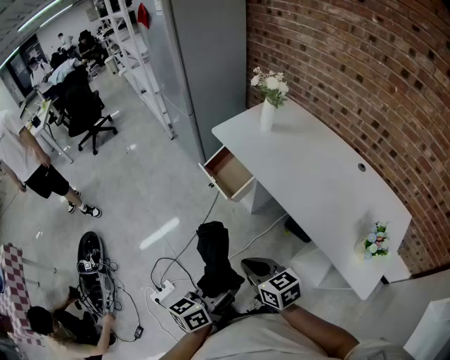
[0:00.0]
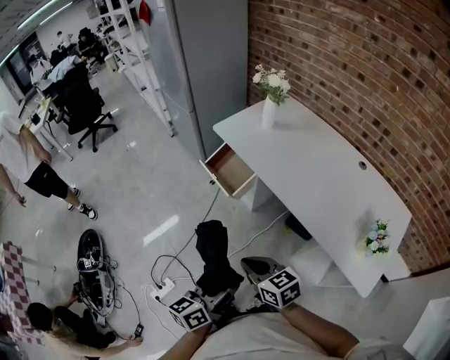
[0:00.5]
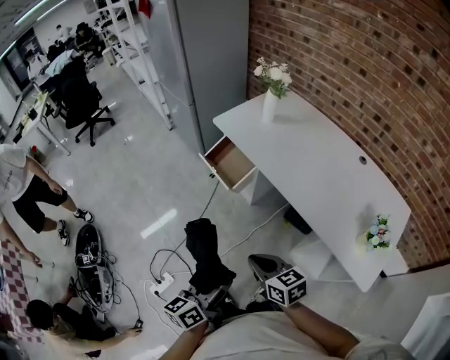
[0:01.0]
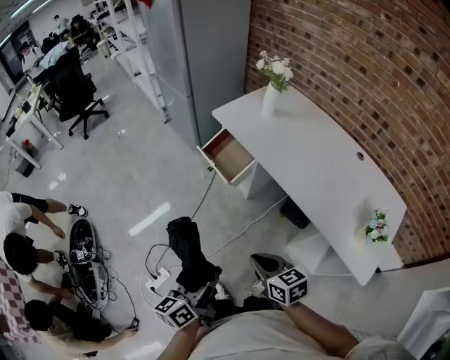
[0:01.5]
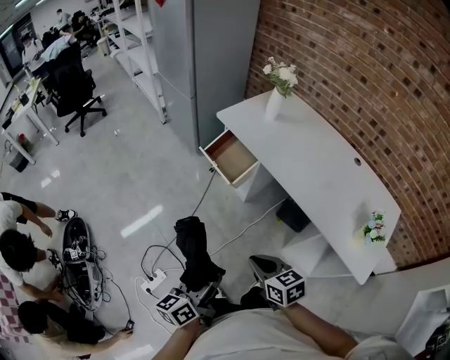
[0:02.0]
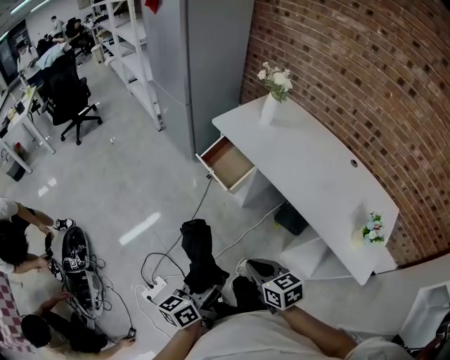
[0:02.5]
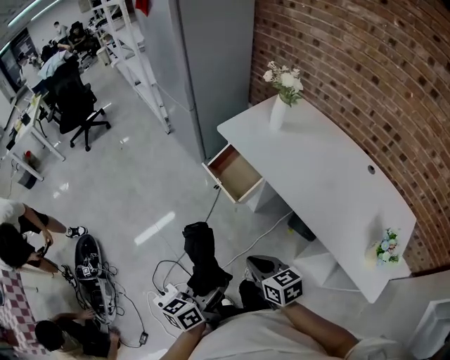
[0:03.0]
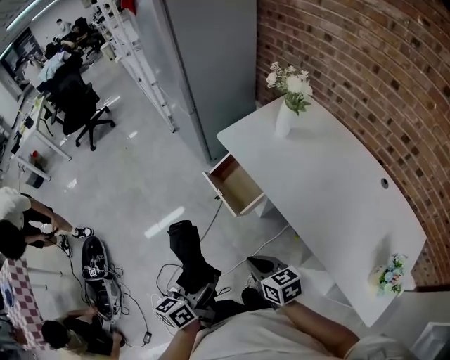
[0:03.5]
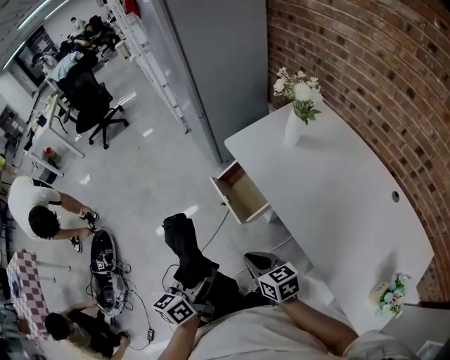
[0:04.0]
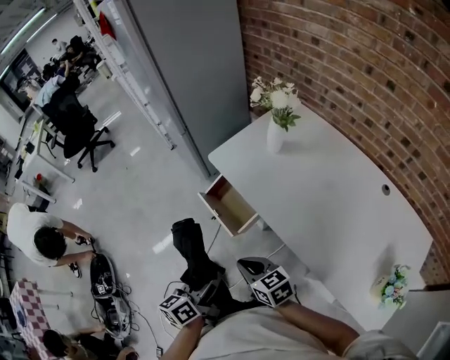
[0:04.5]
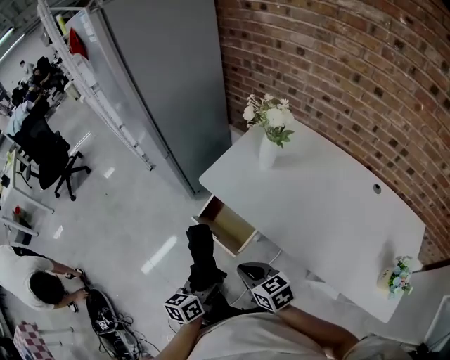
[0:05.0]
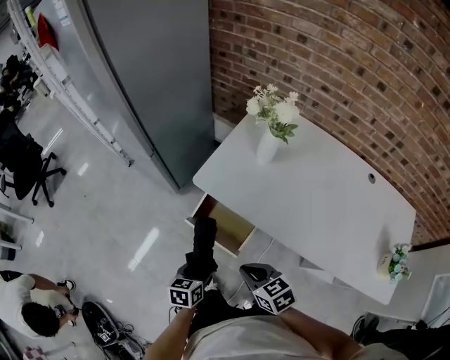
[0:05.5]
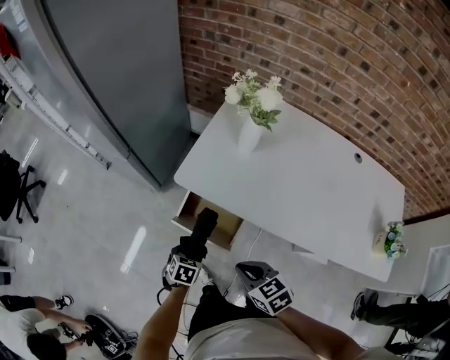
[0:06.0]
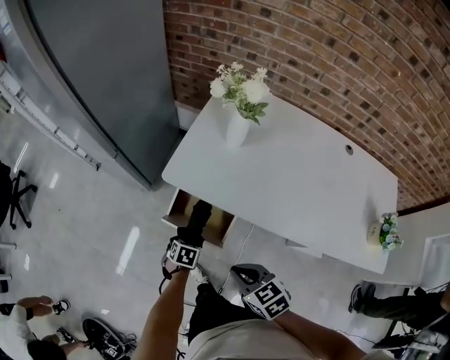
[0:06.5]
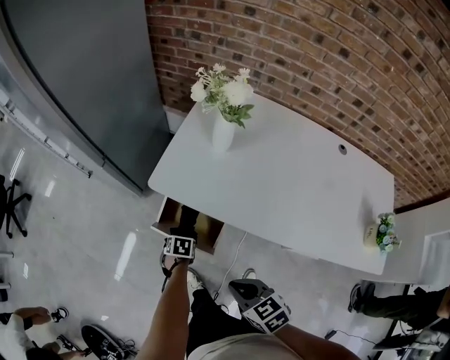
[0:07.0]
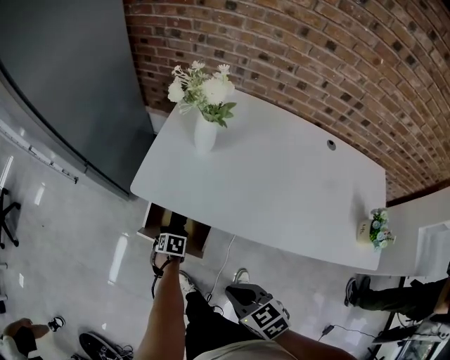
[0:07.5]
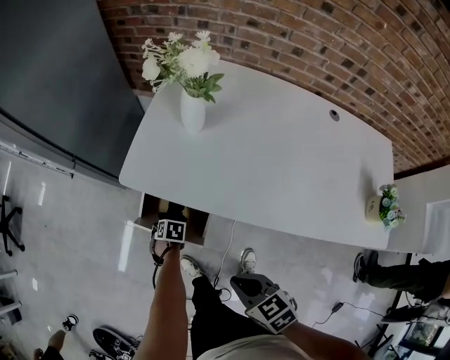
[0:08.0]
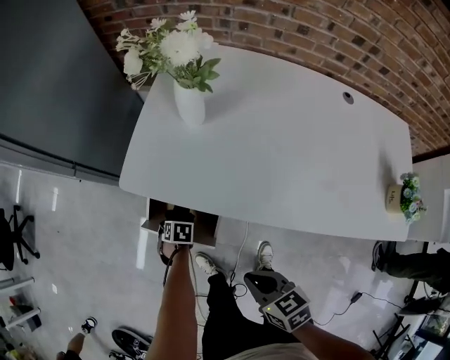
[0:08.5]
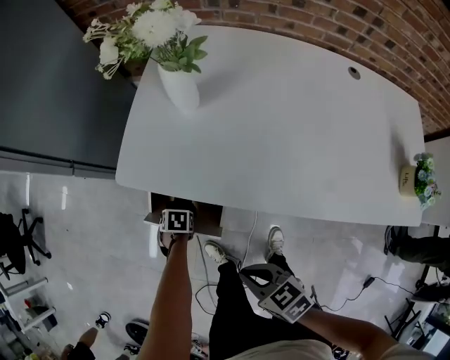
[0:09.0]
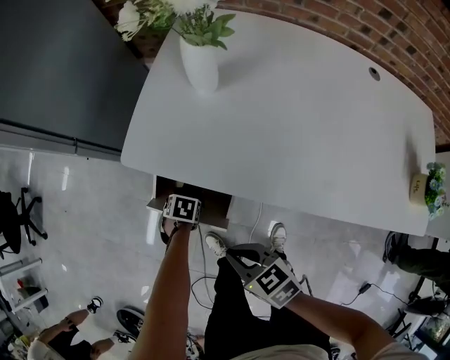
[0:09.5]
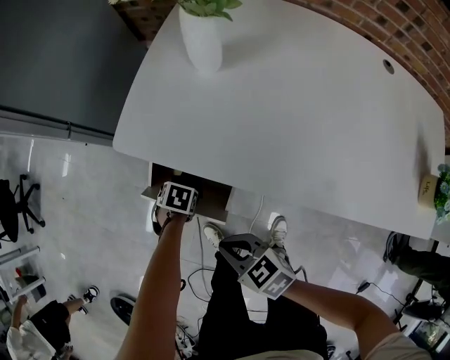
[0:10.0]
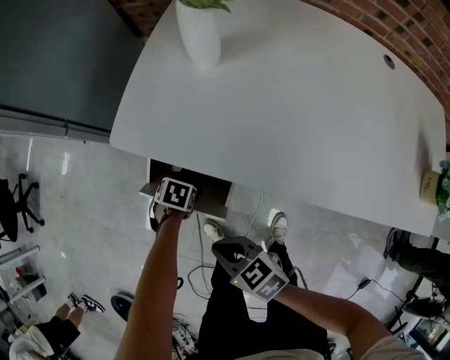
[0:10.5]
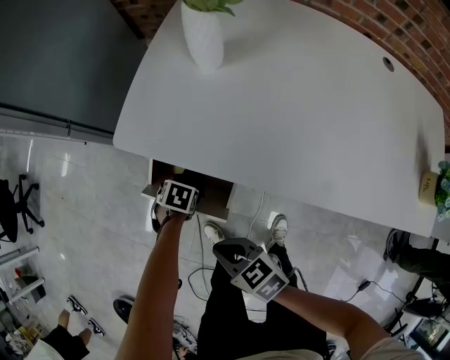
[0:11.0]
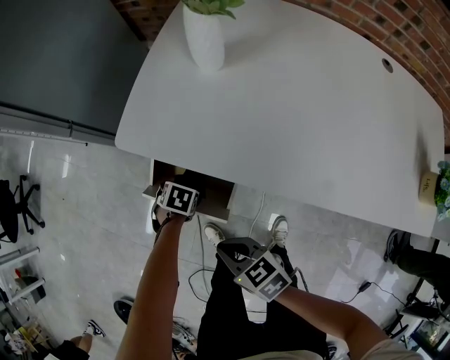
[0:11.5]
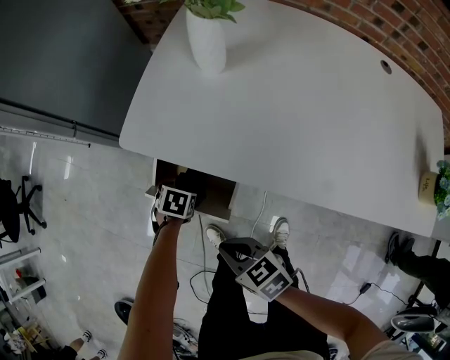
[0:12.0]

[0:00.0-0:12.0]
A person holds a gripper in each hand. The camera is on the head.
0:00.0 to 0:02.0: The left gripper heads to the left, covering roughly 15 cm, while the right gripper ends up about 5 cm from where it was.
0:02.0 to 0:04.0: Both grippers travel together forward, some 25 cm.
0:04.0 to 0:06.0: The right gripper shifts by roughly 15 cm, and changes its angle by approximately 30 degrees. Meanwhile the left gripper changes place by some 35 cm, and tilts its fingers approximately 50 degrees downward.
0:06.0 to 0:08.0: The right gripper moves about 10 cm. The left gripper goes roughly 10 cm downward, and swivels approximately 20 degrees.
0:08.0 to 0:10.0: The right gripper goes approximately 15 cm downward.
0:10.0 to 0:12.0: The grippers stay close to where they were, moving slightly.

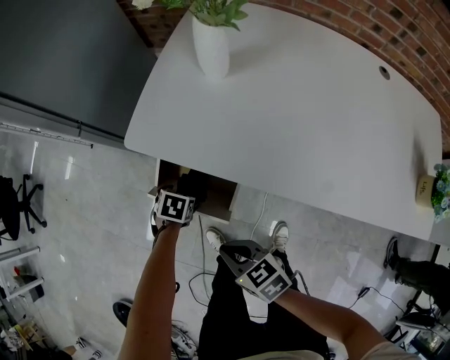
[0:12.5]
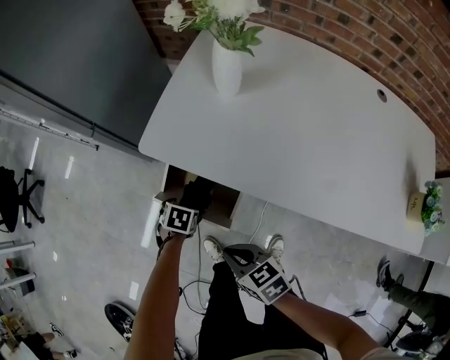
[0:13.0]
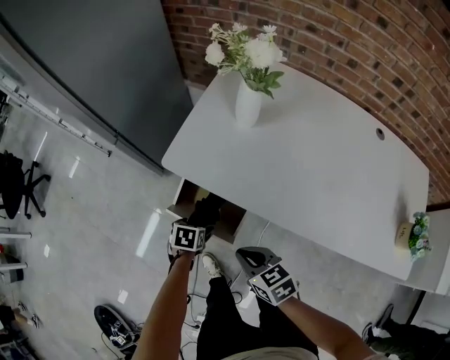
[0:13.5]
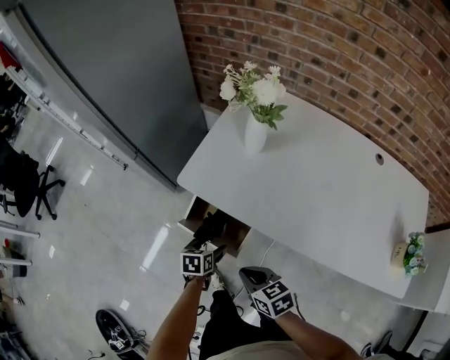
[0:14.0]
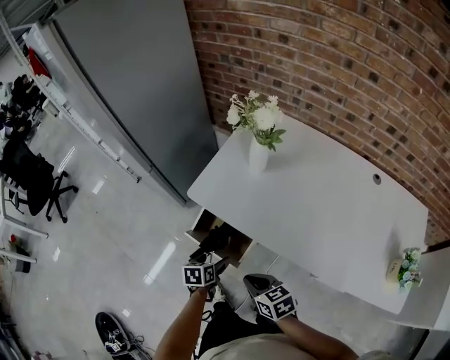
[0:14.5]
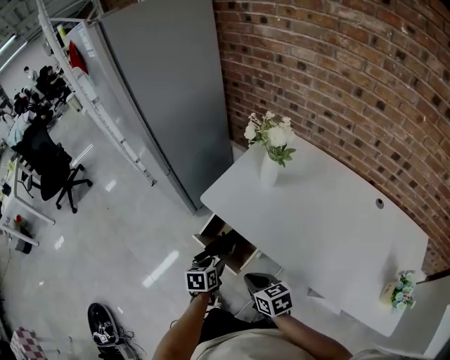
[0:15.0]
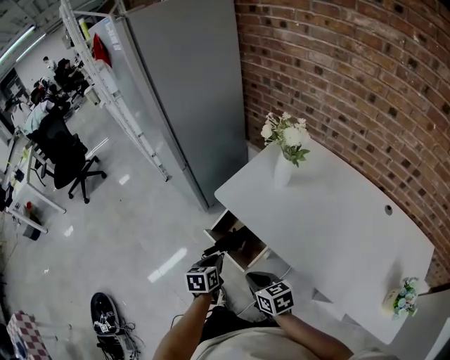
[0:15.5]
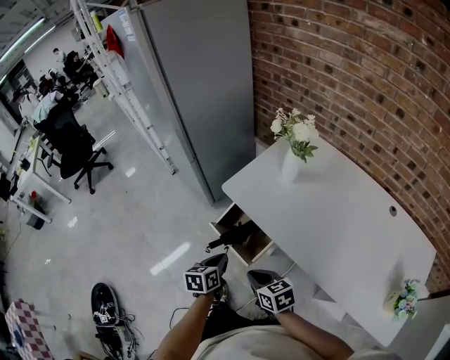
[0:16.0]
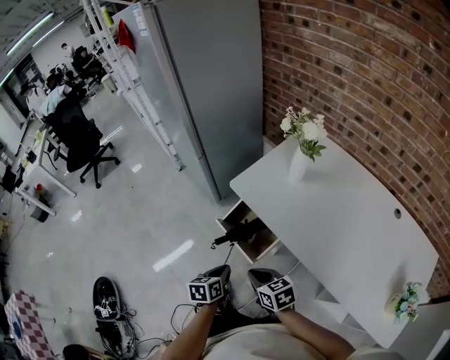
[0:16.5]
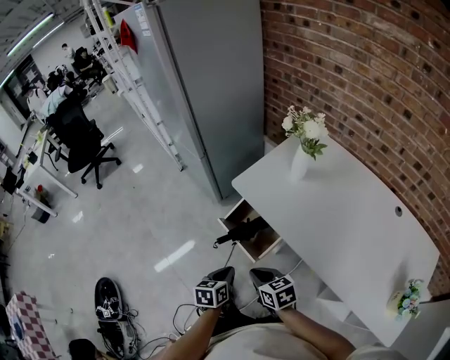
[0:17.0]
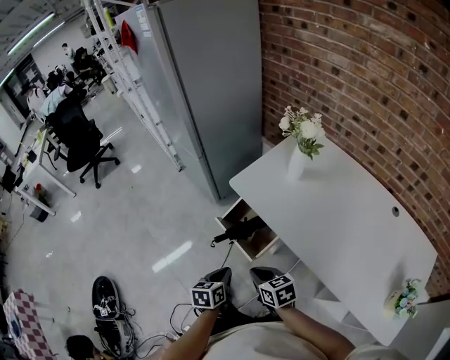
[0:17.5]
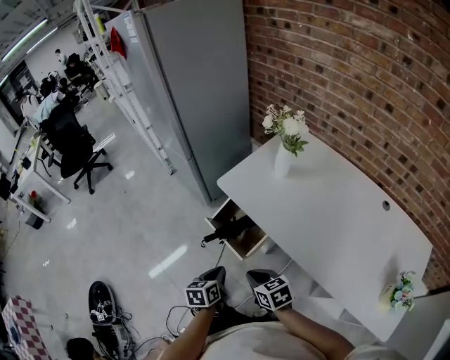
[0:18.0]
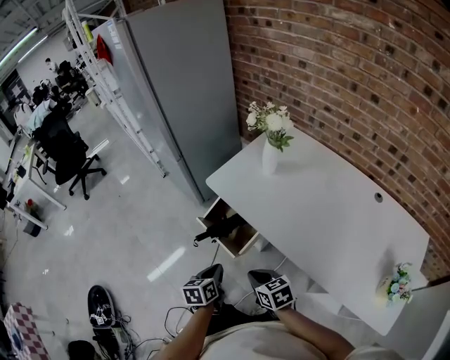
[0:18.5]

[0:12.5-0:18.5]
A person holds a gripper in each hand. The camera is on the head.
0:12.5 to 0:14.5: The grippers both shift upward by some 15 cm. The left gripper swivels approximately 40 degrees.
0:14.5 to 0:16.5: The right gripper ends up approximately 5 cm from where it was; the left gripper is displaced backward, upward and to the left by roughly 15 cm, swivels about 20 degrees, and closes its fingers.
0:16.5 to 0:18.5: The left gripper ends up some 5 cm from where it was; the right gripper goes roughly 10 cm to the right and backward.

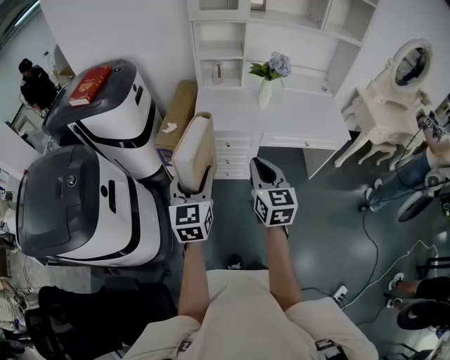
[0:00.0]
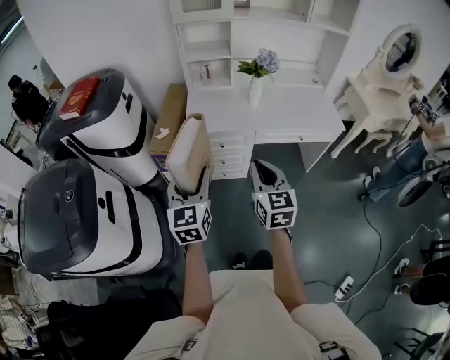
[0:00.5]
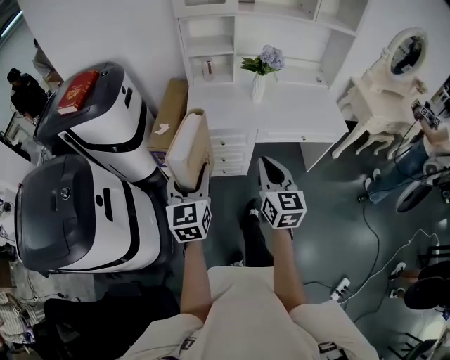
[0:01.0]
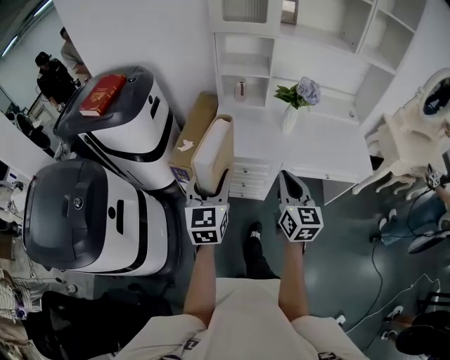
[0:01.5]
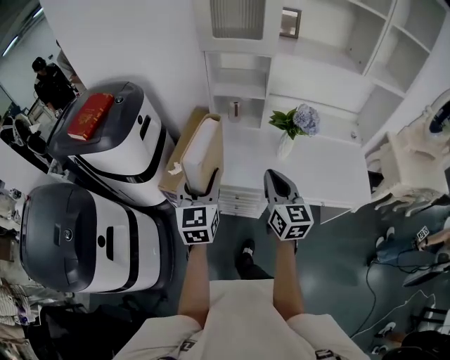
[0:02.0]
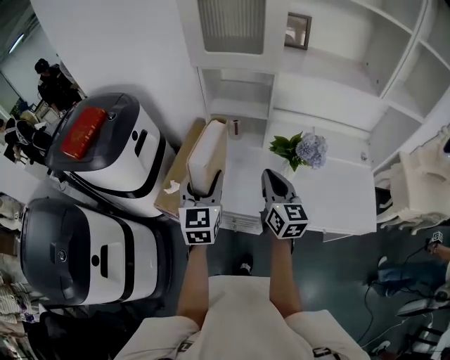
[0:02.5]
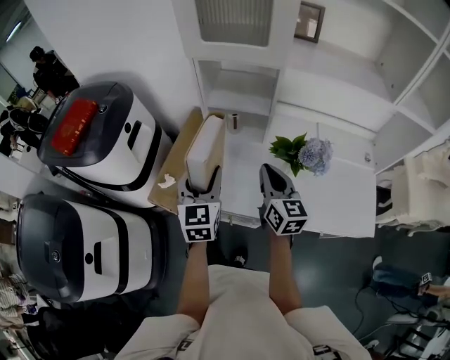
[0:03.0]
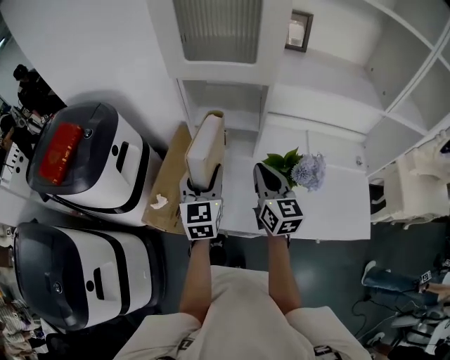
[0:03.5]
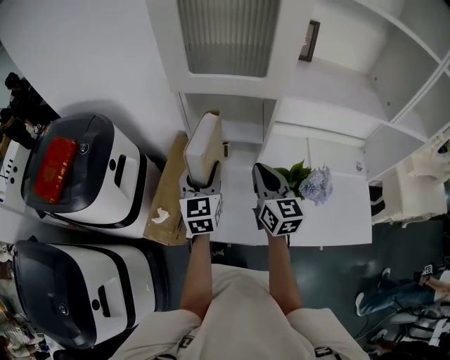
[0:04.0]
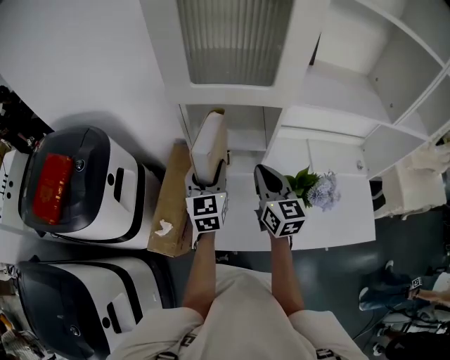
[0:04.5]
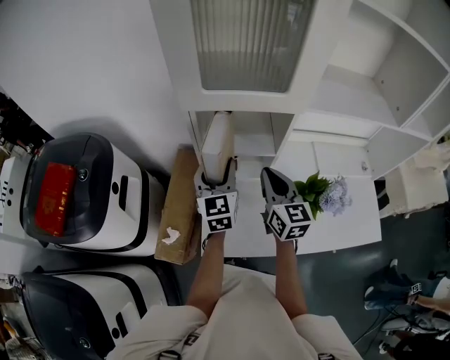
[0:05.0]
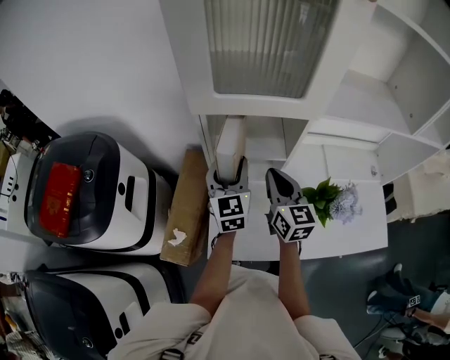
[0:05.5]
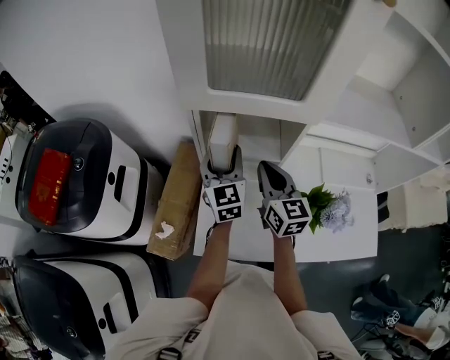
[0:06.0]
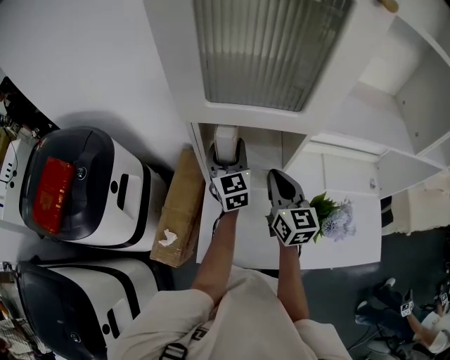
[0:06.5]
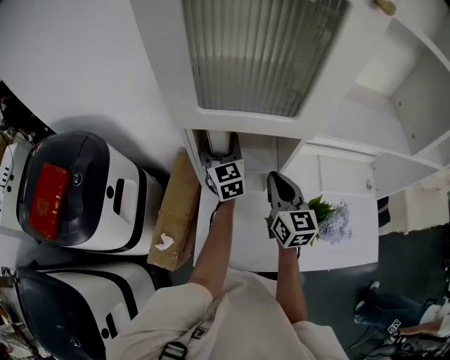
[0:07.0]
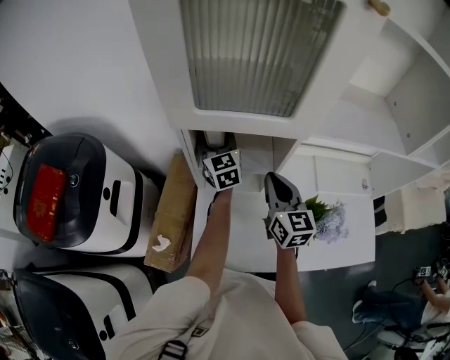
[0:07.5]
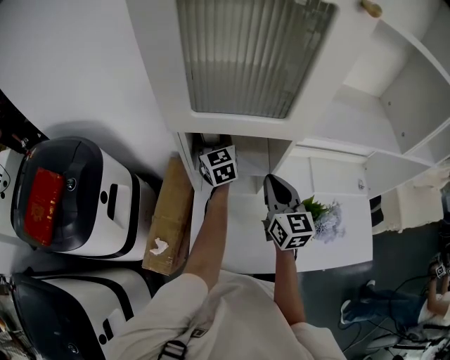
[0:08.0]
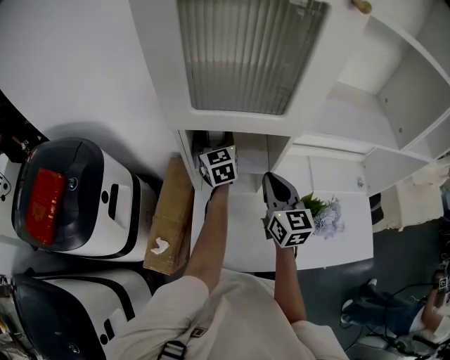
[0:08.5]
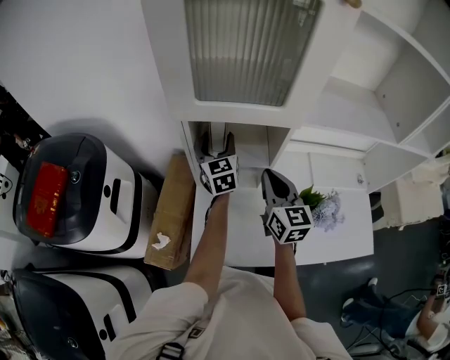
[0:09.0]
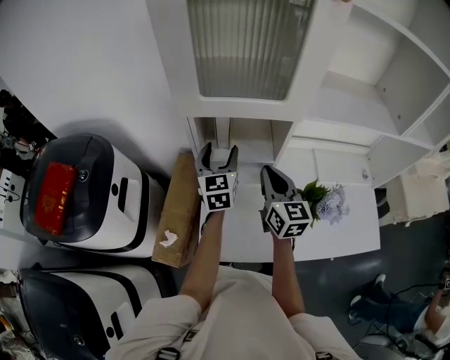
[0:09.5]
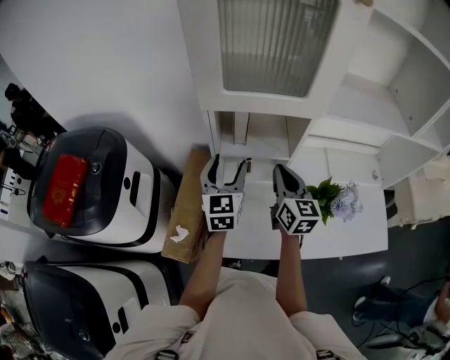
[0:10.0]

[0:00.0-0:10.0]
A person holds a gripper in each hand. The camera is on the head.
0:00.0 to 0:02.0: The grippers both shift forward by approximately 30 cm.
0:02.0 to 0:04.0: The two grippers go approximately 30 cm forward.
0:04.0 to 0:06.0: Both grippers travel together forward, roughly 10 cm.
0:06.0 to 0:08.0: The left gripper shifts approximately 15 cm forward; the right gripper moves to the right, approximately 5 cm.
0:08.0 to 0:10.0: The left gripper travels backward by roughly 20 cm.
